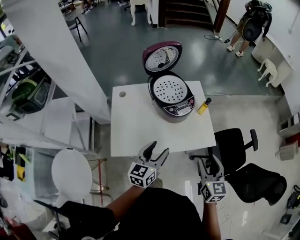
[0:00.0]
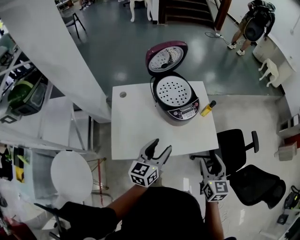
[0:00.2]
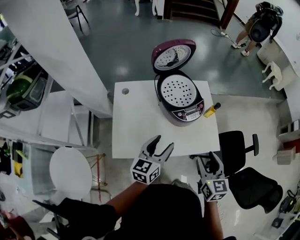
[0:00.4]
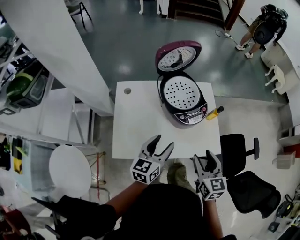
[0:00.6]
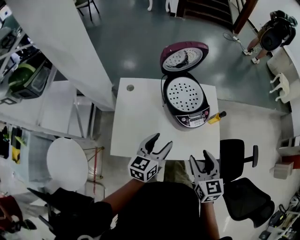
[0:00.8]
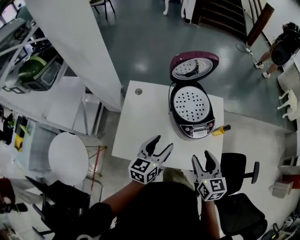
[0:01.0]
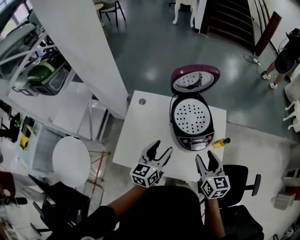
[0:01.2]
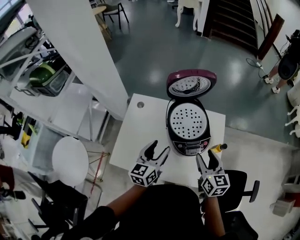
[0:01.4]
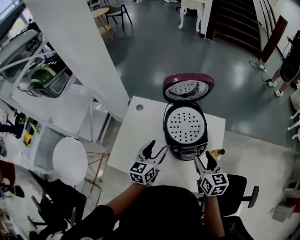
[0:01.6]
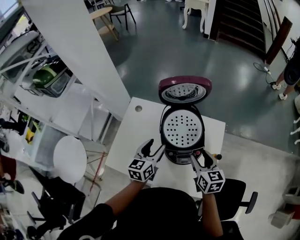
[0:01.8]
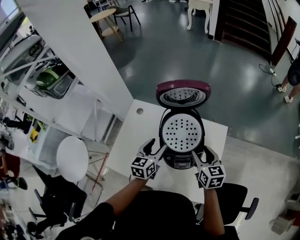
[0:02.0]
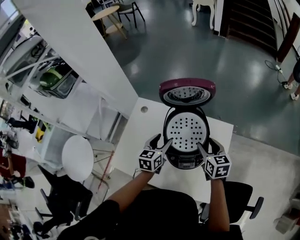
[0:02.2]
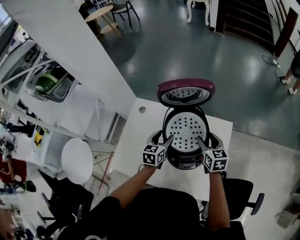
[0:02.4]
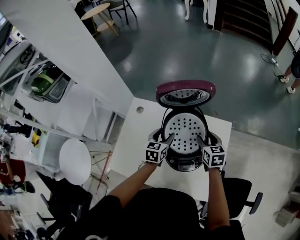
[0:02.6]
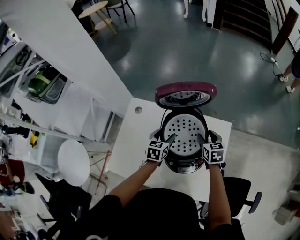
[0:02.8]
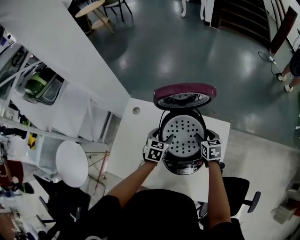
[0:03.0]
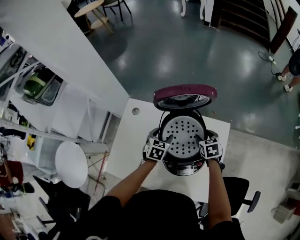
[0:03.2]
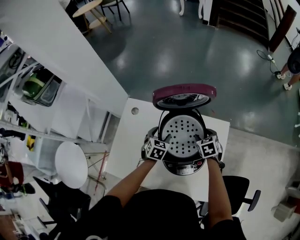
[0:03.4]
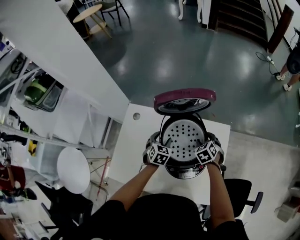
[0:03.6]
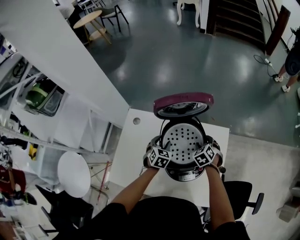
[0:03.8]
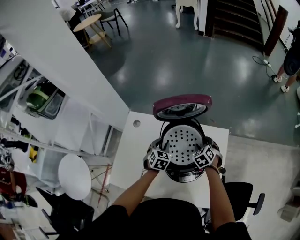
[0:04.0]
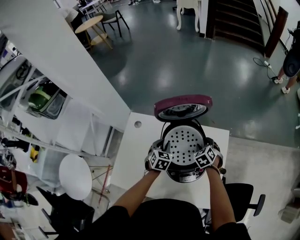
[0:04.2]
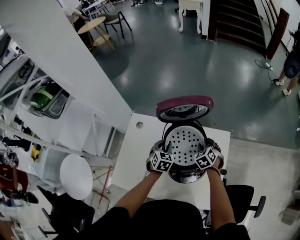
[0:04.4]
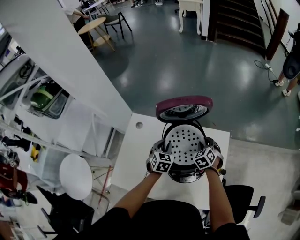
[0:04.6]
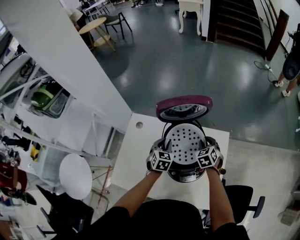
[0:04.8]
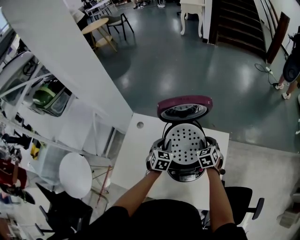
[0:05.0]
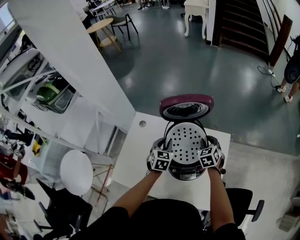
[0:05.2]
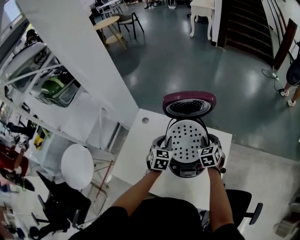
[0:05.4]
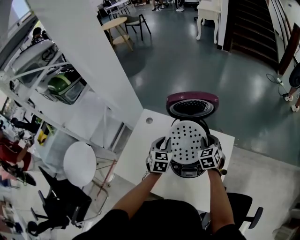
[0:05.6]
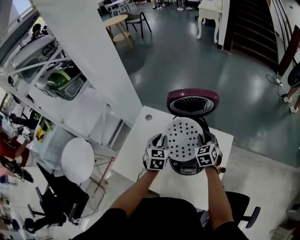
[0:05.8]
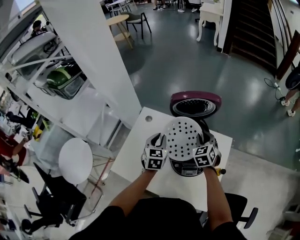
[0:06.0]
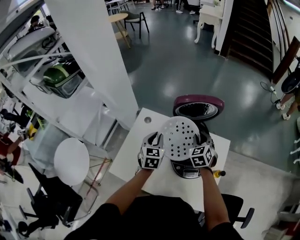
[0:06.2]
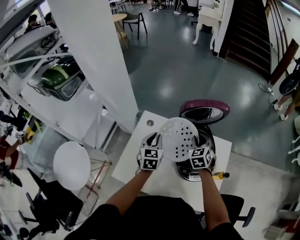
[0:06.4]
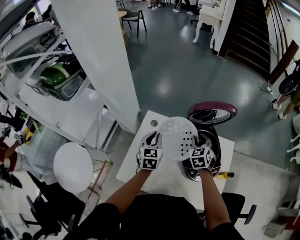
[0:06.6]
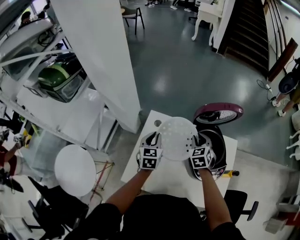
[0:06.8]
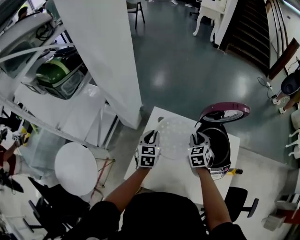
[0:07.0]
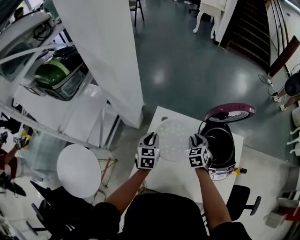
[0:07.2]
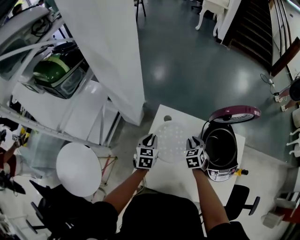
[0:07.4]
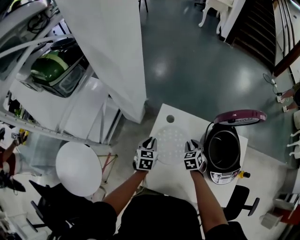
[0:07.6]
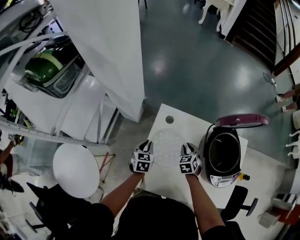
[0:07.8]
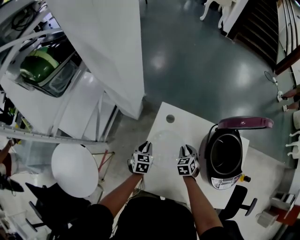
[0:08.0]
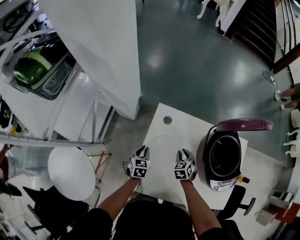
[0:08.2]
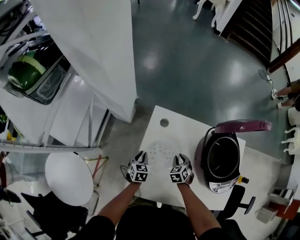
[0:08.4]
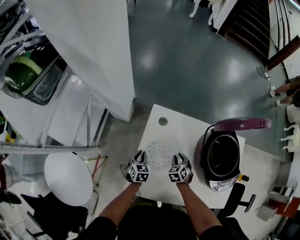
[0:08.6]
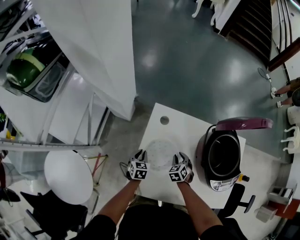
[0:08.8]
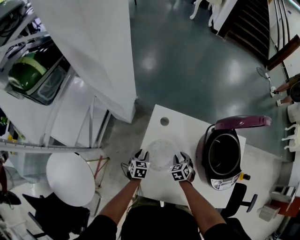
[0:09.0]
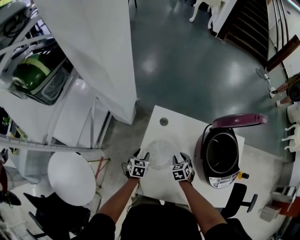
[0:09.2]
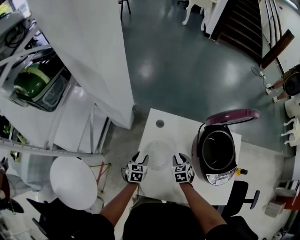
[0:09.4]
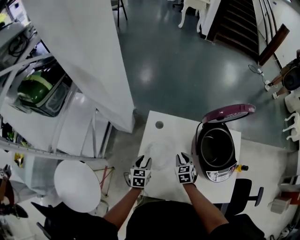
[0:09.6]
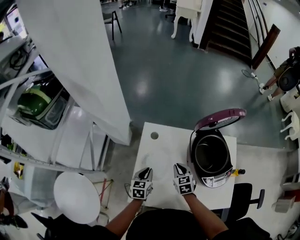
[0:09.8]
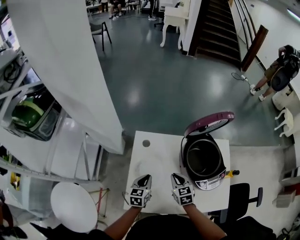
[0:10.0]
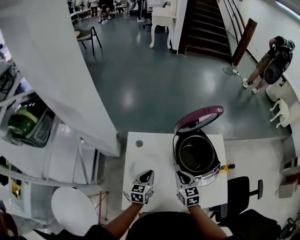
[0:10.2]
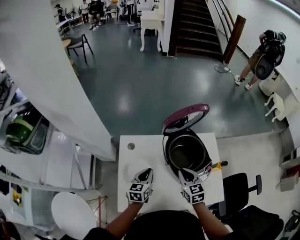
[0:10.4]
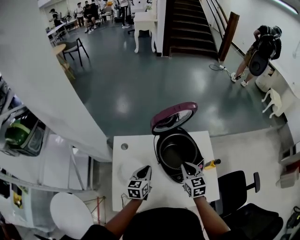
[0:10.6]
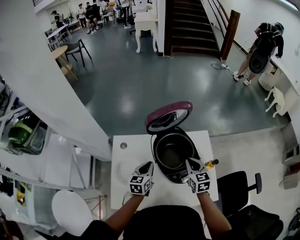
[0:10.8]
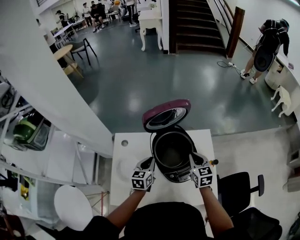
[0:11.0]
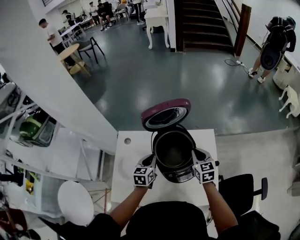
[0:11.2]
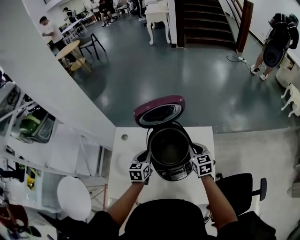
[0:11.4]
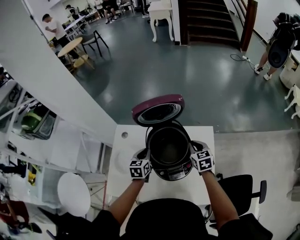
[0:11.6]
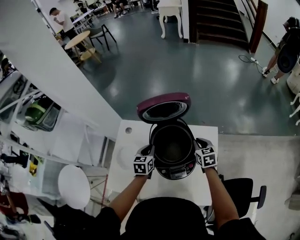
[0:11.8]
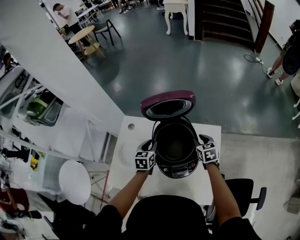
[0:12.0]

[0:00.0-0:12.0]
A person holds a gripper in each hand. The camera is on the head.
0:00.0 to 0:01.6: The left gripper changes place by approximately 20 cm, and rotates some 30 degrees. The right gripper moves roughly 30 cm, and rotates roughly 30 degrees.
0:01.6 to 0:03.0: The grippers both shift forward and downward by roughly 25 cm. The left gripper turns by some 30 degrees. Meanwhile the right gripper turns by about 20 degrees.
0:03.0 to 0:04.4: The left gripper closes; the right gripper rotates roughly 30 degrees.
0:04.4 to 0:06.0: Both grippers move upward and to the left, approximately 15 cm. The left gripper swivels approximately 20 degrees.
0:06.0 to 0:07.6: Both grippers move to the left and downward, some 30 cm.
0:07.6 to 0:09.0: The two grippers go roughly 15 cm downward.
0:09.0 to 0:10.4: The two grippers go some 30 cm upward and to the right. The left gripper swivels some 30 degrees, and closes, while the right gripper swivels roughly 40 degrees, and closes its fingers.
0:10.4 to 0:12.0: The right gripper is displaced to the right and forward by about 25 cm, and opens up. Meanwhile the left gripper shifts some 15 cm to the right and forward, and swivels some 20 degrees.

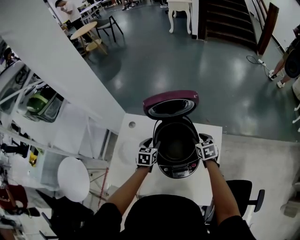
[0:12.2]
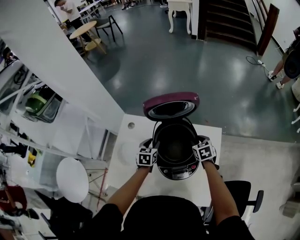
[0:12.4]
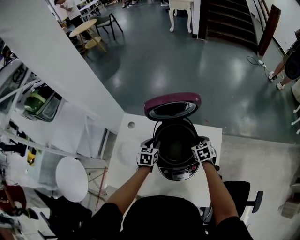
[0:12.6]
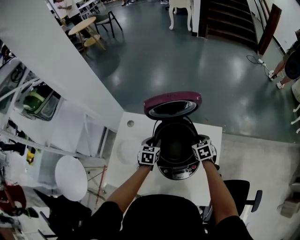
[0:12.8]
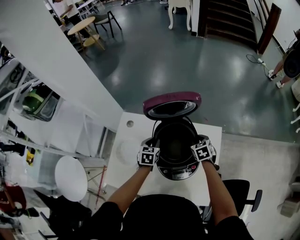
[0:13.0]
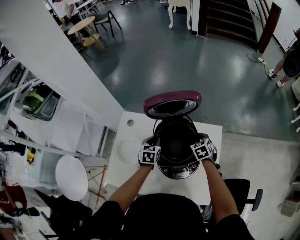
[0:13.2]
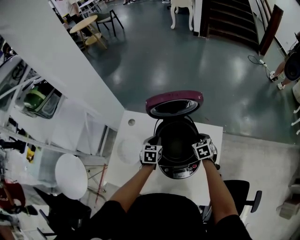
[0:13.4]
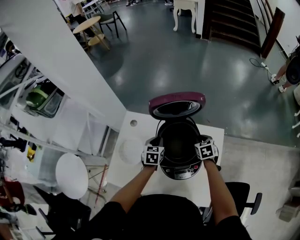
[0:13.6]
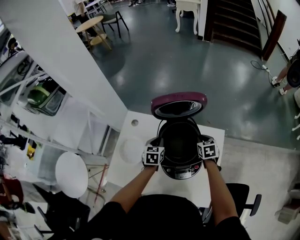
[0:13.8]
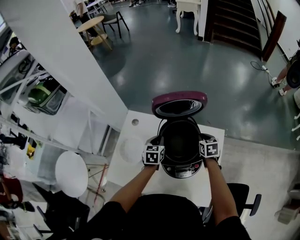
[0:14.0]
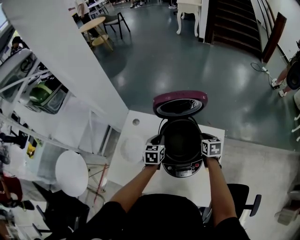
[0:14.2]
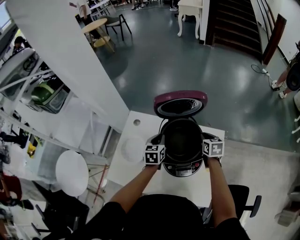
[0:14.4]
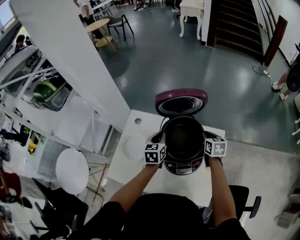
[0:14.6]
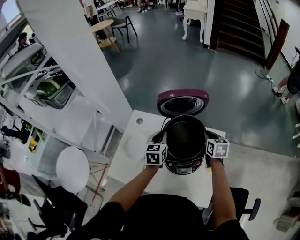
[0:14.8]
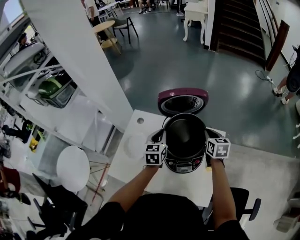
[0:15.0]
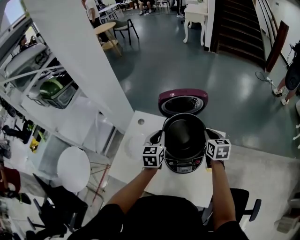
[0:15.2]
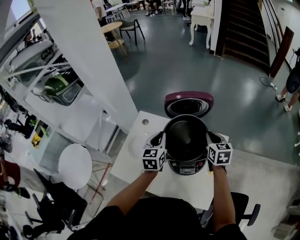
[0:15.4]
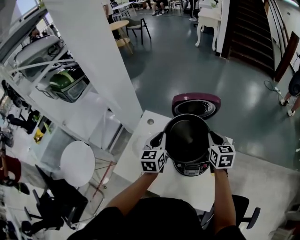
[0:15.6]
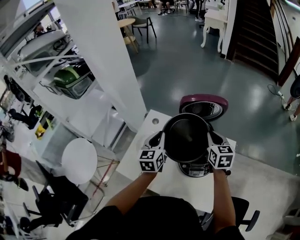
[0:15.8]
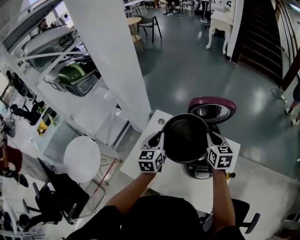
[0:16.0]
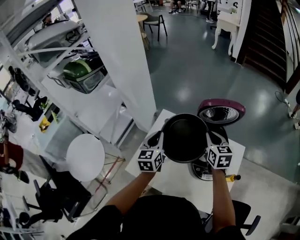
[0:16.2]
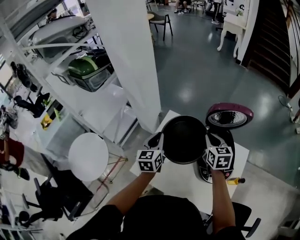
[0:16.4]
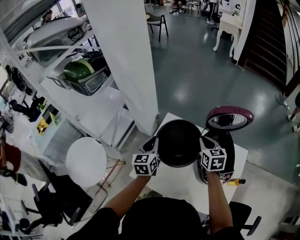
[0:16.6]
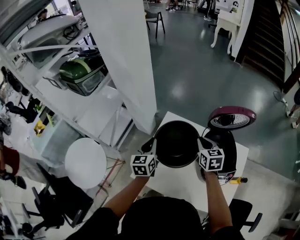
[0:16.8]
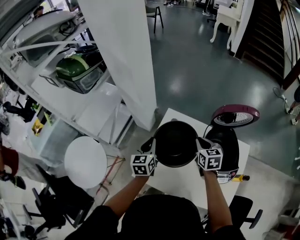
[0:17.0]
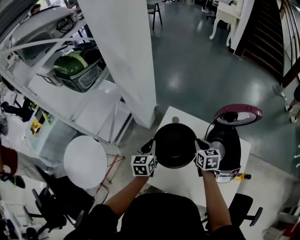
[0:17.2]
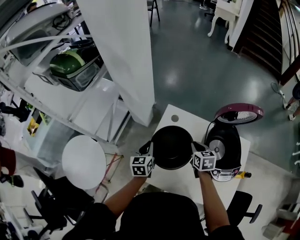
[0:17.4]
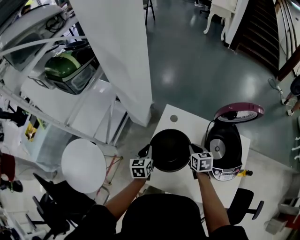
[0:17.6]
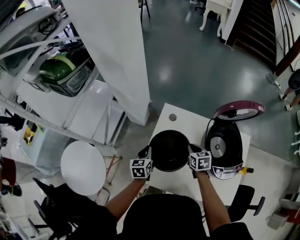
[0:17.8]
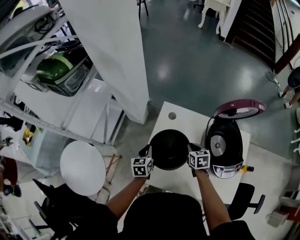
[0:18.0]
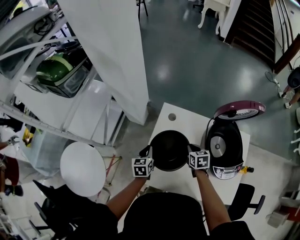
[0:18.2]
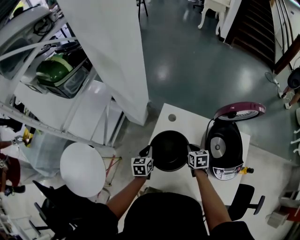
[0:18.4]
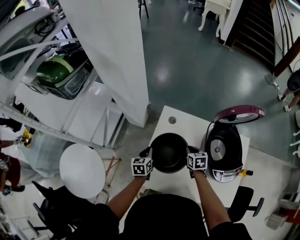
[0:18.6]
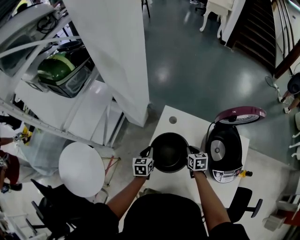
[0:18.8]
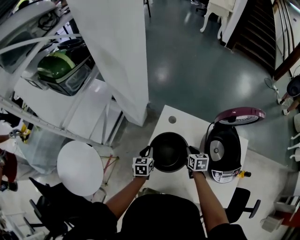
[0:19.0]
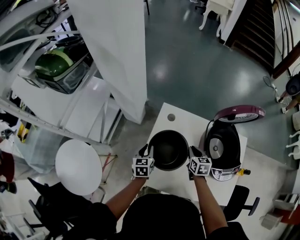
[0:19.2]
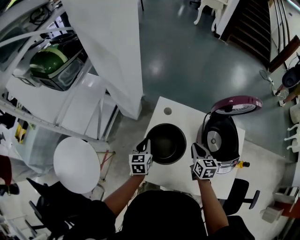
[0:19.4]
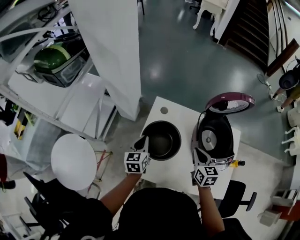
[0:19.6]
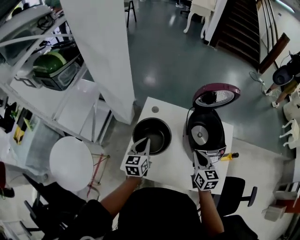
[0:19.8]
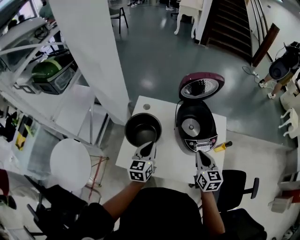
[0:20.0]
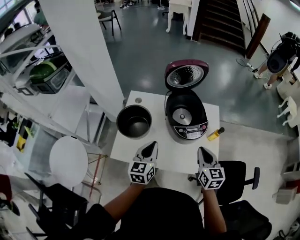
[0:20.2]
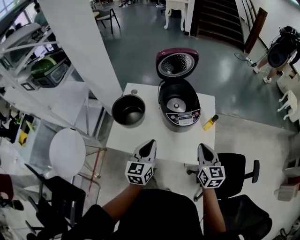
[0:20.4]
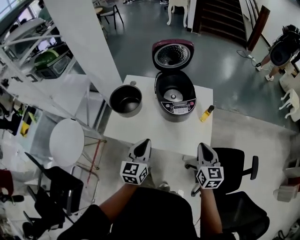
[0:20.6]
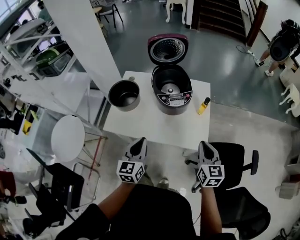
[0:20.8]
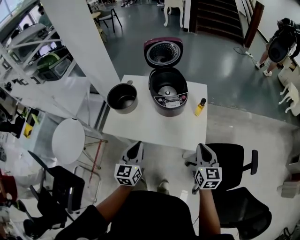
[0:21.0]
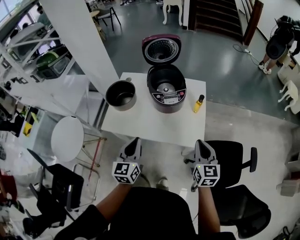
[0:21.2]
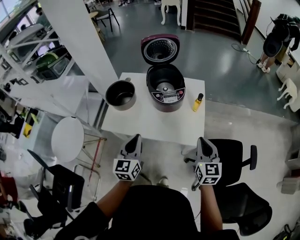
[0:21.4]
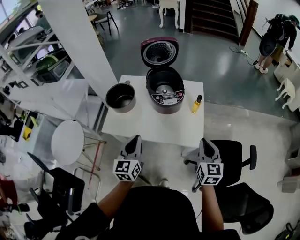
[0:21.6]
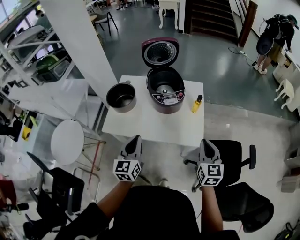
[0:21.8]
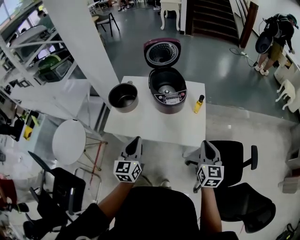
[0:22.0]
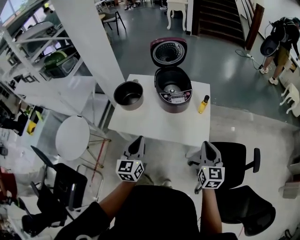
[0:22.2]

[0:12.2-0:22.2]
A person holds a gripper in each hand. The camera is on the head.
0:12.2 to 0:13.6: The left gripper closes its fingers.
0:13.6 to 0:15.0: The grippers both shift upward by about 15 cm. The right gripper rotates about 20 degrees.
0:15.0 to 0:16.4: Both grippers travel together to the left, roughly 25 cm.
0:16.4 to 0:18.0: The grippers both shift downward and to the left by some 25 cm. The left gripper rotates some 20 degrees; the right gripper changes its angle by about 20 degrees.
0:18.0 to 0:19.4: The right gripper goes roughly 5 cm upward.
0:19.4 to 0:20.8: The two grippers travel together, backward and to the right, about 50 cm. The left gripper moves upward, some 15 cm, and turns by approximately 20 degrees; the right gripper turns by about 20 degrees.
0:20.8 to 0:22.2: The left gripper ends up some 5 cm from where it was; the right gripper goes some 5 cm backward.

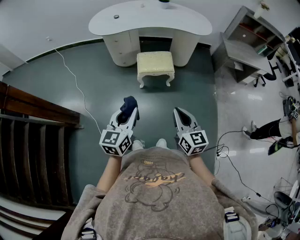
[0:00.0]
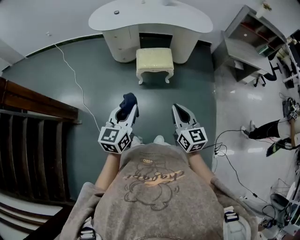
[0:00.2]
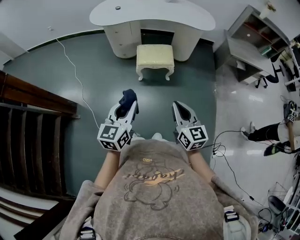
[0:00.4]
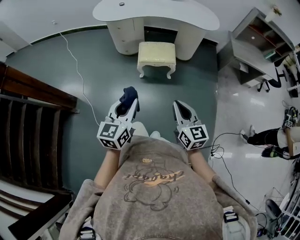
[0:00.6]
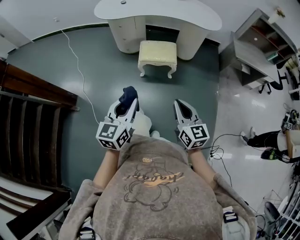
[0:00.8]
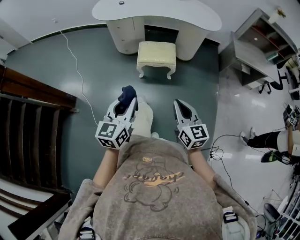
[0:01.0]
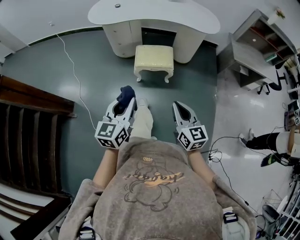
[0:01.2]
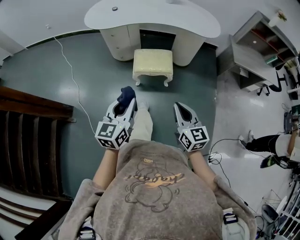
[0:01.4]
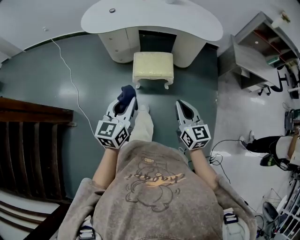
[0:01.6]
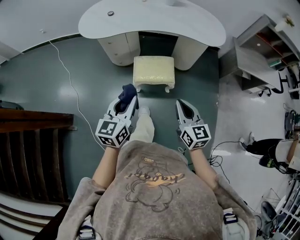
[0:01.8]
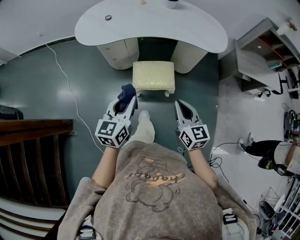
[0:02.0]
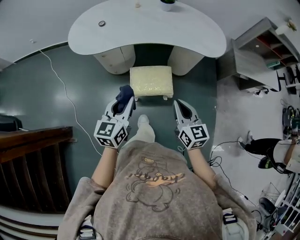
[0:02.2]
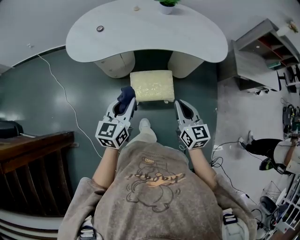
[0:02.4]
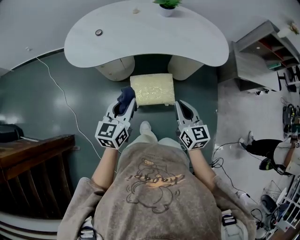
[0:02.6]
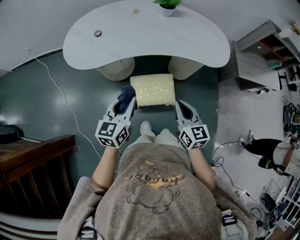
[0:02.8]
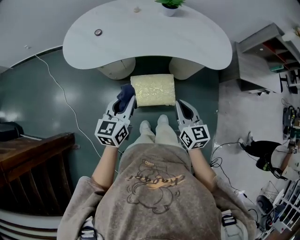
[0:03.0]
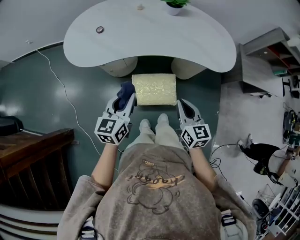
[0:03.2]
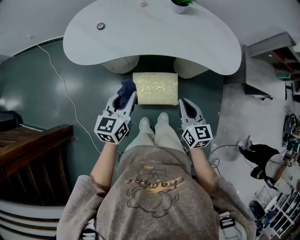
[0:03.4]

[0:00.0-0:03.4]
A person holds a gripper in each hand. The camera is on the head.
0:00.0 to 0:01.6: The grippers both shift forward by about 15 cm.
0:01.6 to 0:03.4: Both grippers move forward, approximately 30 cm.
